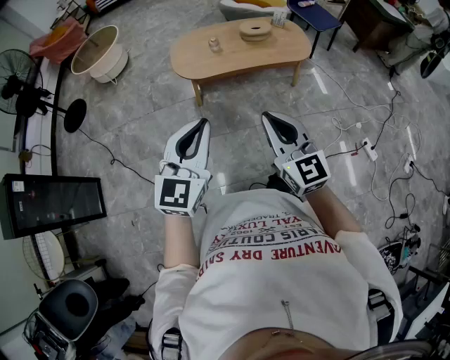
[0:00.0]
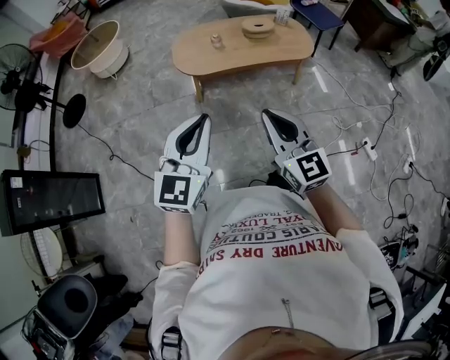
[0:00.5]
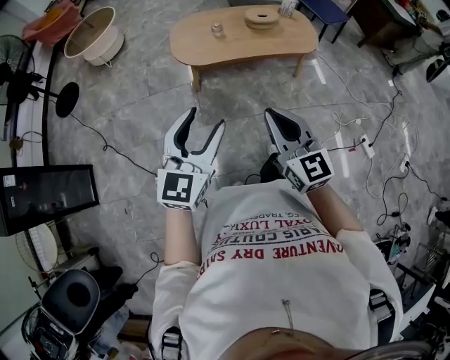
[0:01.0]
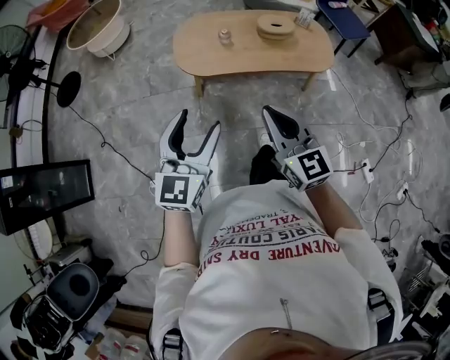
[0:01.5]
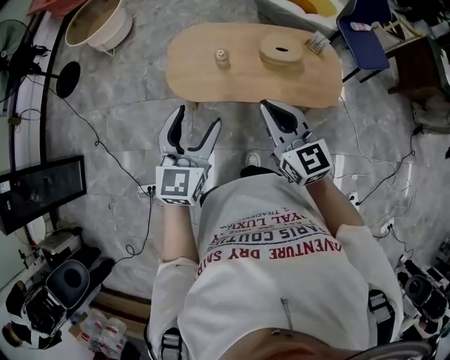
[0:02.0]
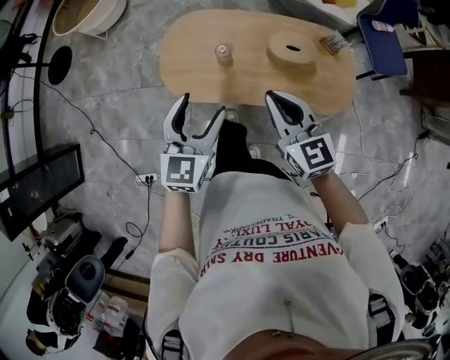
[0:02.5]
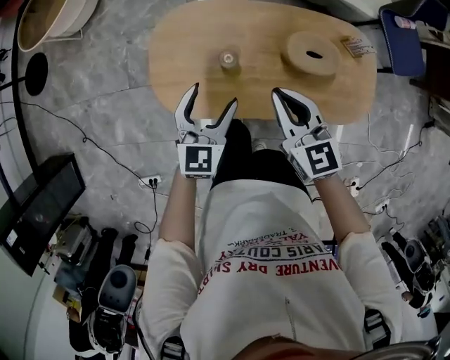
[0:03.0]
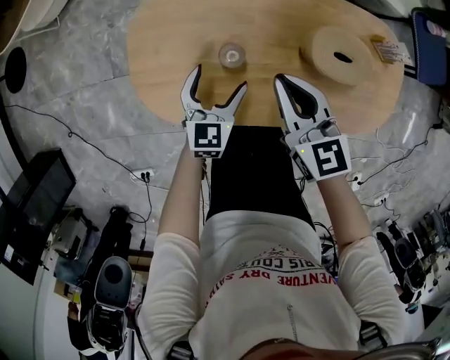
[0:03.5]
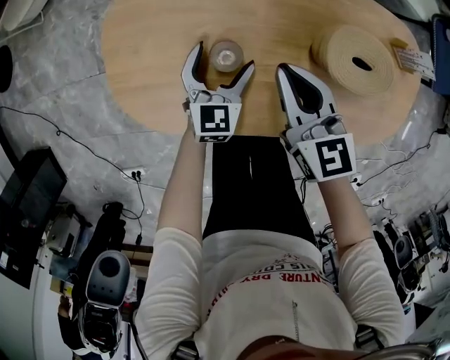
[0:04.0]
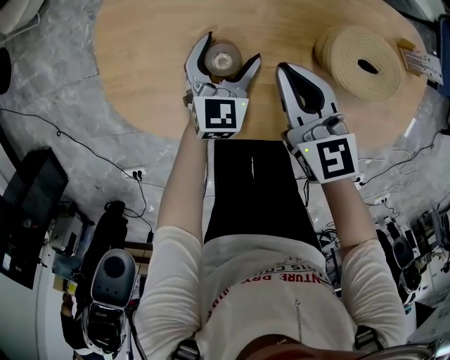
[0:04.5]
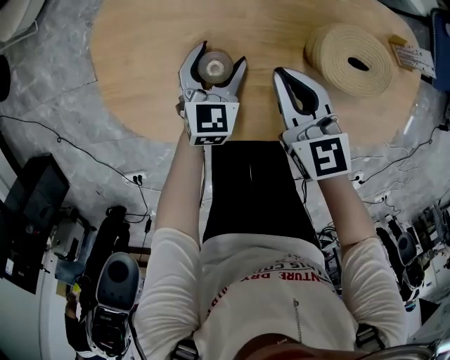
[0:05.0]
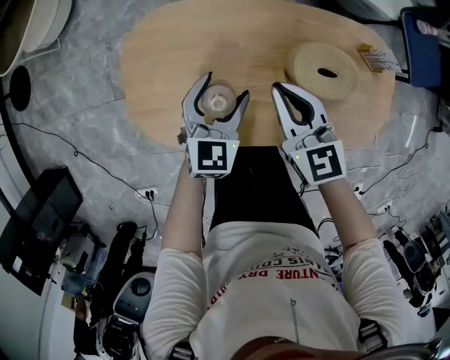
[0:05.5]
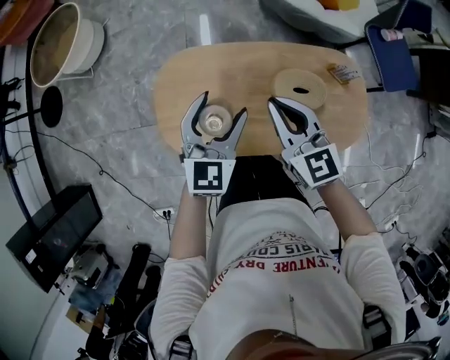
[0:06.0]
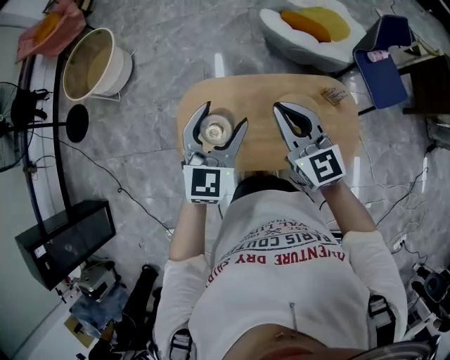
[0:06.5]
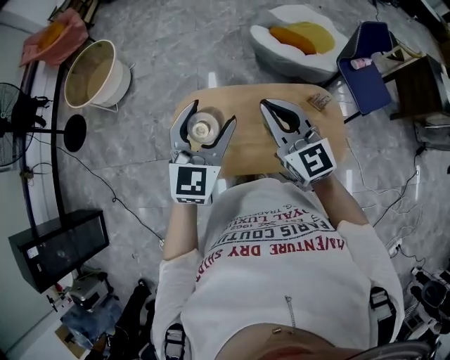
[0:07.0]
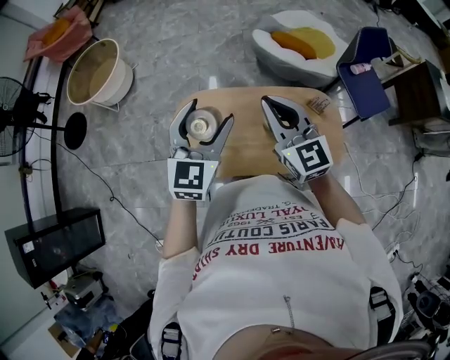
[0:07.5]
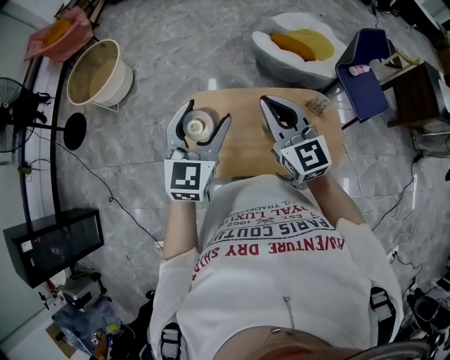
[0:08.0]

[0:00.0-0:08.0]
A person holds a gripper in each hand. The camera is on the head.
0:00.0 to 0:02.0: Both grippers are carried forward, some 40 cm. The left gripper changes its angle by roughly 20 degrees, and opens up. Meanwhile the right gripper turns by approximately 20 degrees.
0:02.0 to 0:04.0: Both grippers travel together downward and forward, some 60 cm. The right gripper rotates some 20 degrees.
0:04.0 to 0:06.0: The grippers both shift upward by roughly 30 cm.
0:06.0 to 0:08.0: Both grippers travel together upward, some 20 cm.

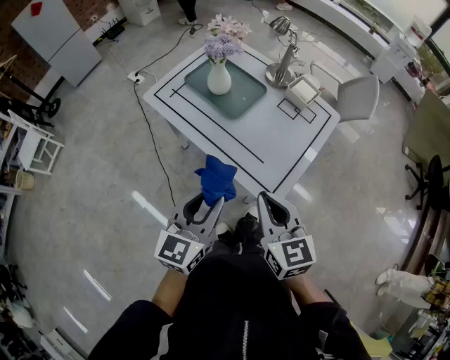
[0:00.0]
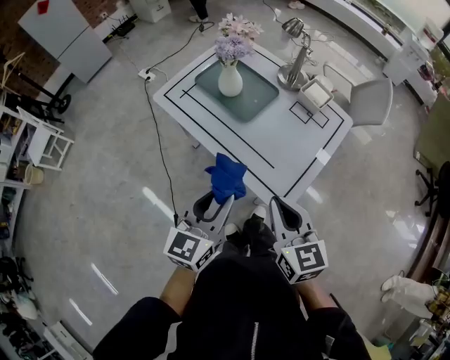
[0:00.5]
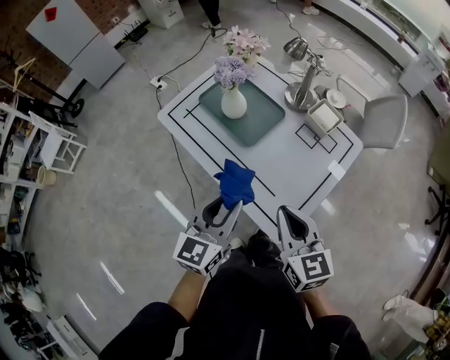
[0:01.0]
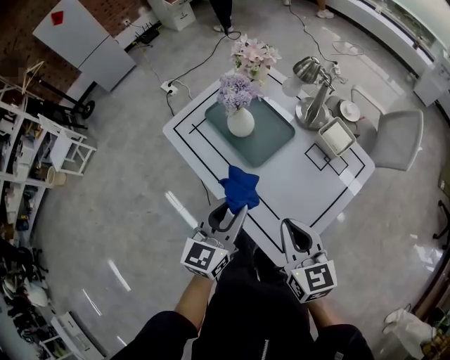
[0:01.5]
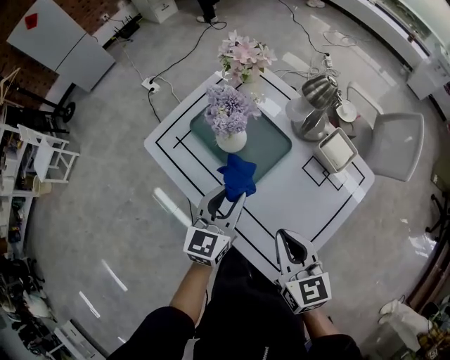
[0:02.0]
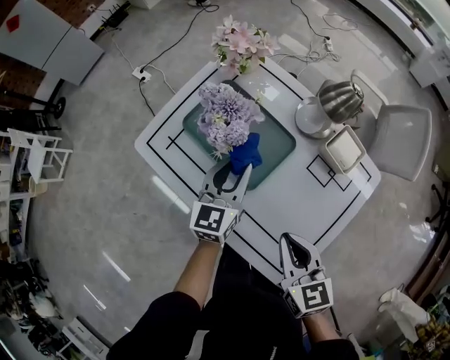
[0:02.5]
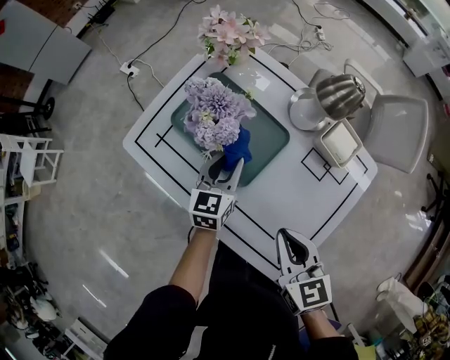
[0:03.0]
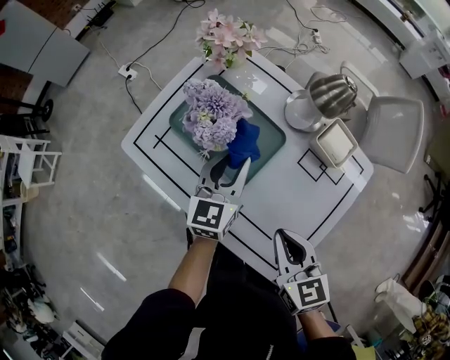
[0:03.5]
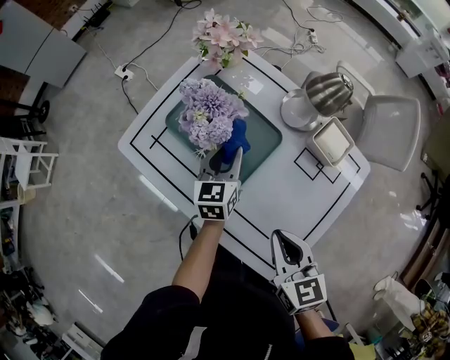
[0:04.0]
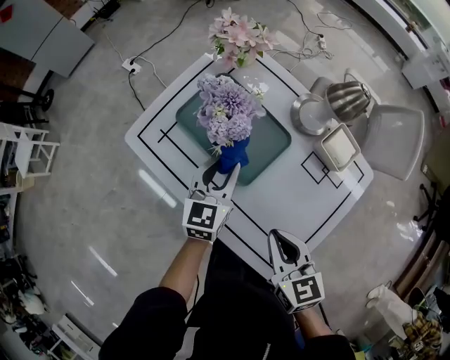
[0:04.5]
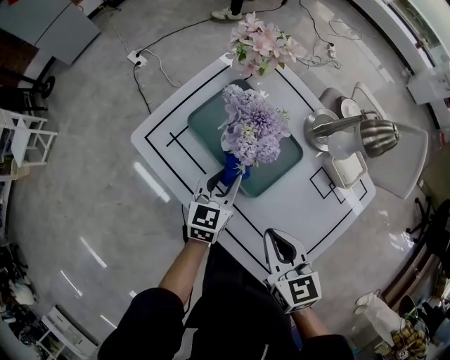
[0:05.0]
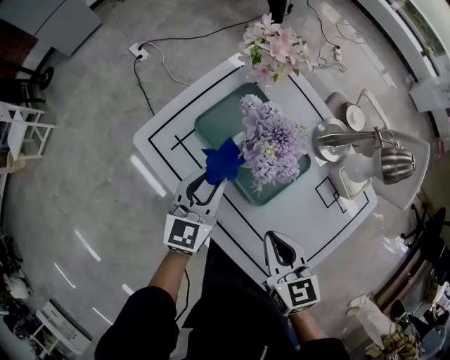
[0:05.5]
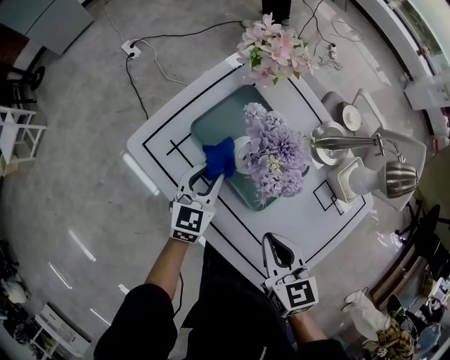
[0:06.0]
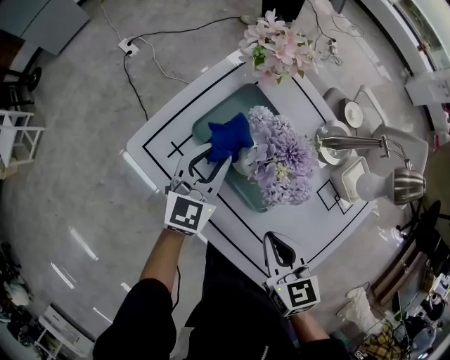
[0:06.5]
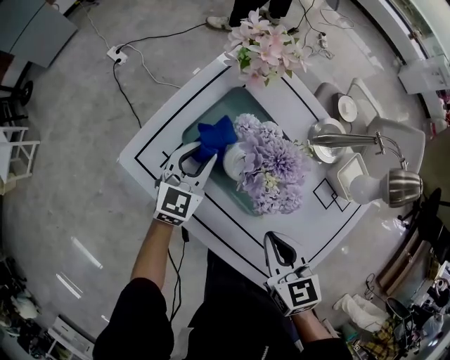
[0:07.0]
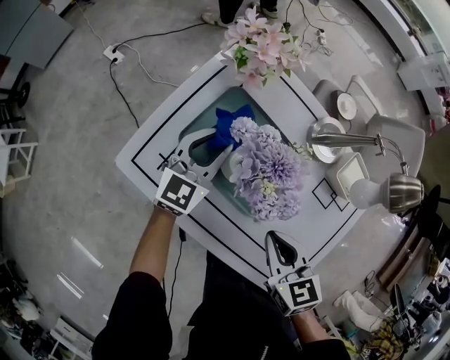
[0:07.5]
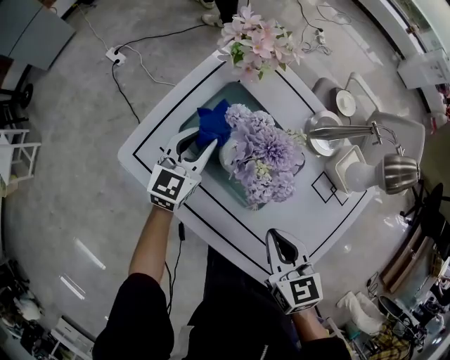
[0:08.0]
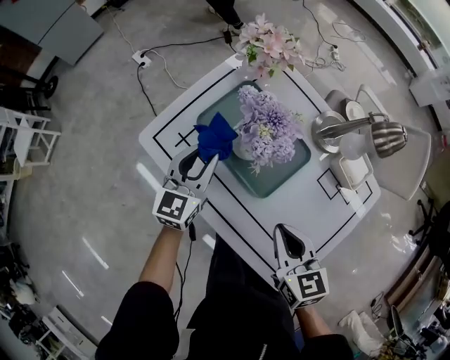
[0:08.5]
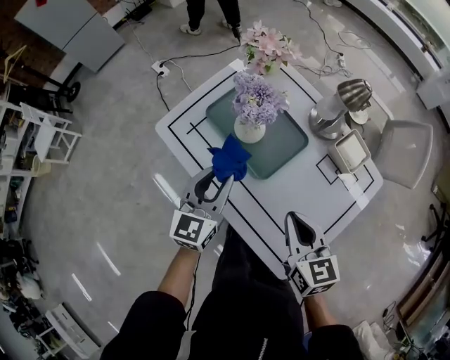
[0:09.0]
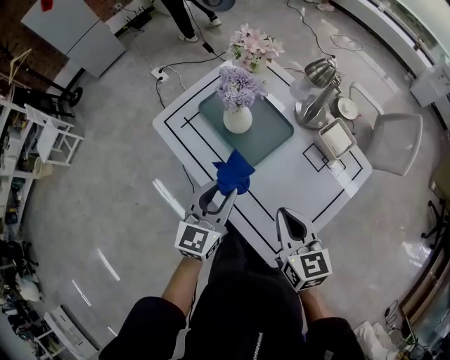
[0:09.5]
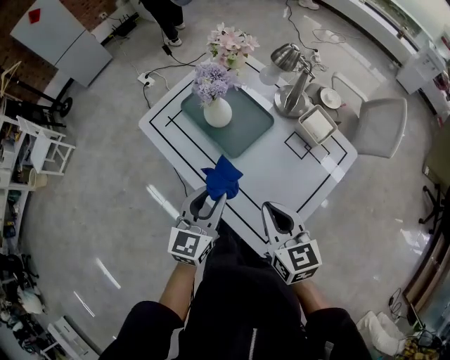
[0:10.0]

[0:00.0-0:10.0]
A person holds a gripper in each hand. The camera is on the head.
0:00.0 to 0:02.0: The two grippers go roughly 25 cm forward.
0:02.0 to 0:04.0: The left gripper moves forward and downward, some 15 cm.
0:04.0 to 0:06.0: The left gripper is displaced to the left by some 15 cm, while the right gripper moves to the left and forward, about 15 cm.
0:06.0 to 0:08.0: The left gripper goes some 10 cm forward.
0:08.0 to 0:10.0: The right gripper moves backward, to the right and upward, some 20 cm, while the left gripper travels backward and upward by about 35 cm.

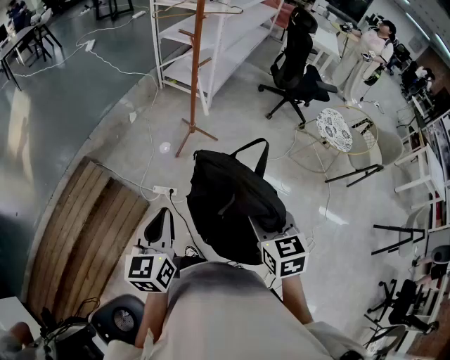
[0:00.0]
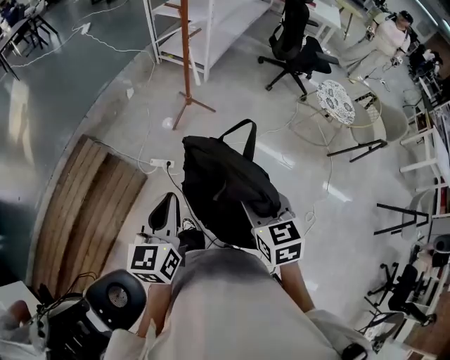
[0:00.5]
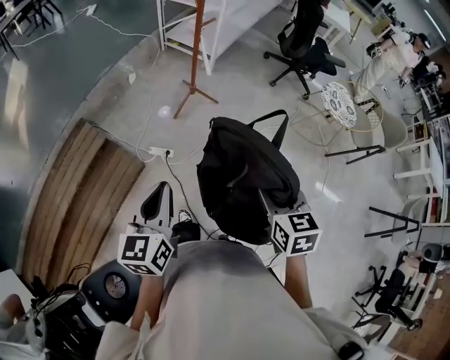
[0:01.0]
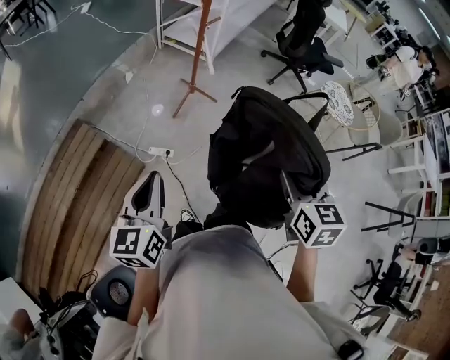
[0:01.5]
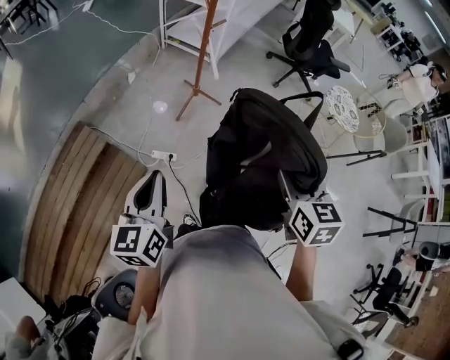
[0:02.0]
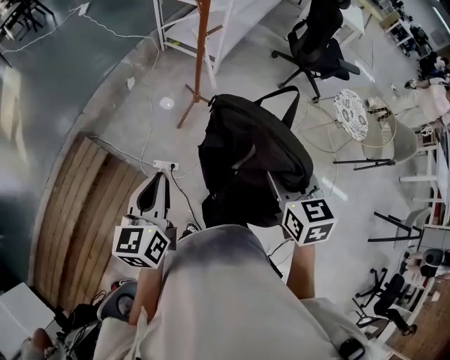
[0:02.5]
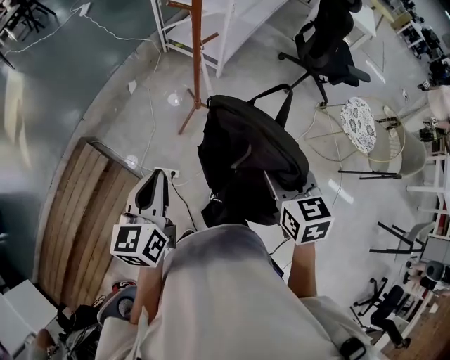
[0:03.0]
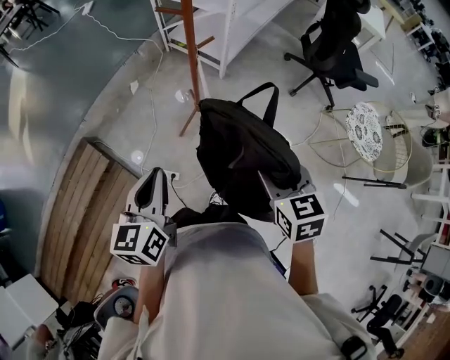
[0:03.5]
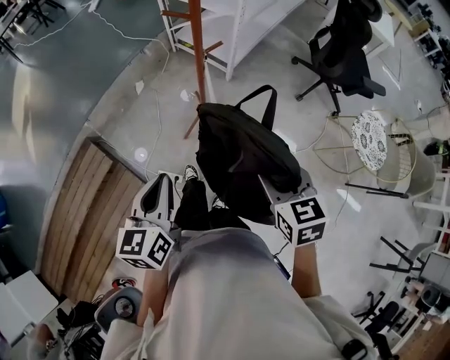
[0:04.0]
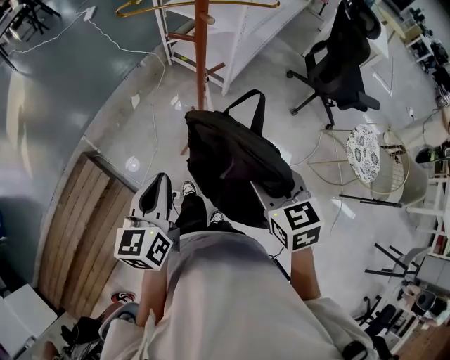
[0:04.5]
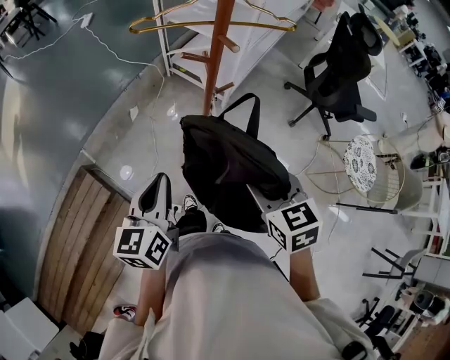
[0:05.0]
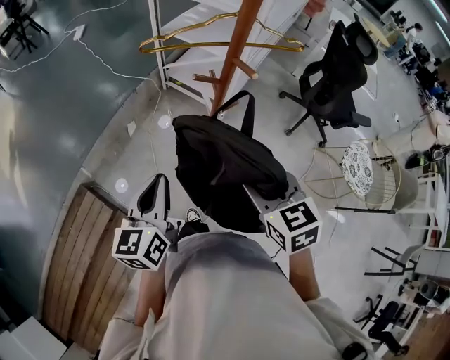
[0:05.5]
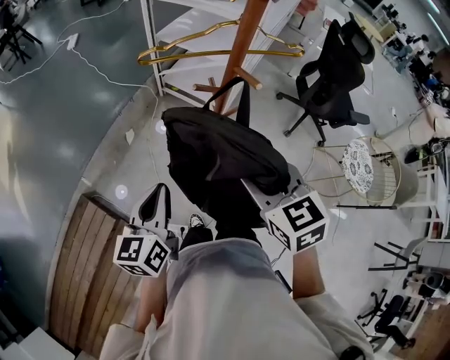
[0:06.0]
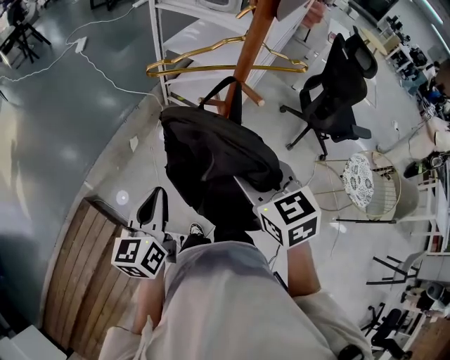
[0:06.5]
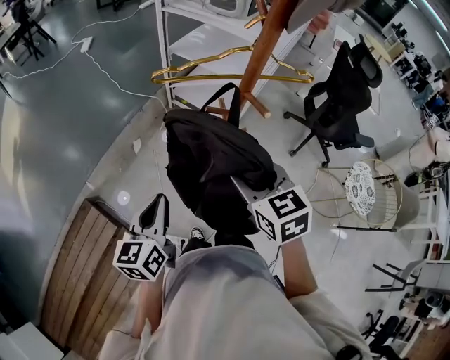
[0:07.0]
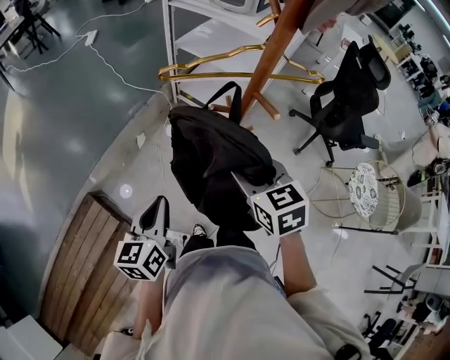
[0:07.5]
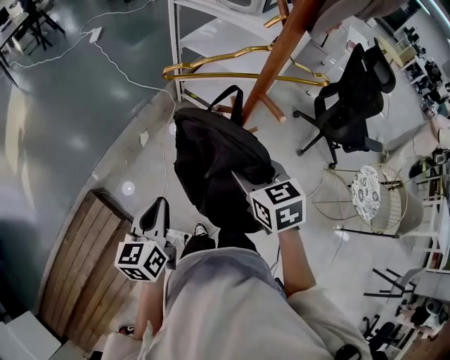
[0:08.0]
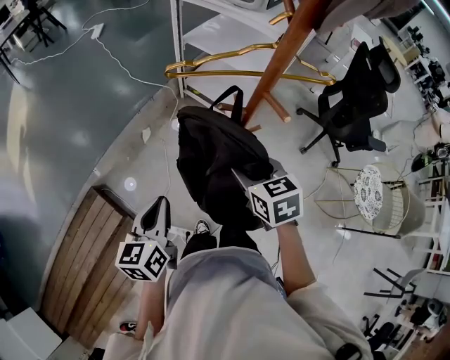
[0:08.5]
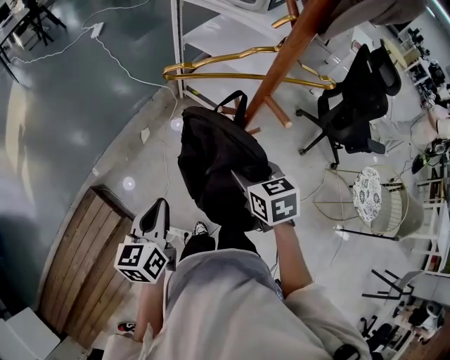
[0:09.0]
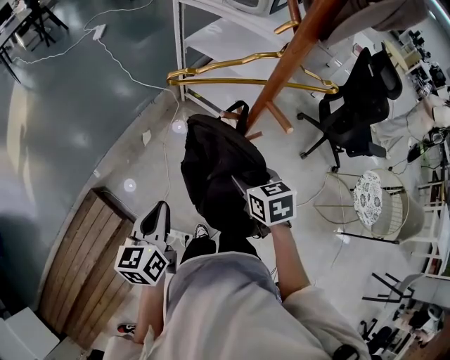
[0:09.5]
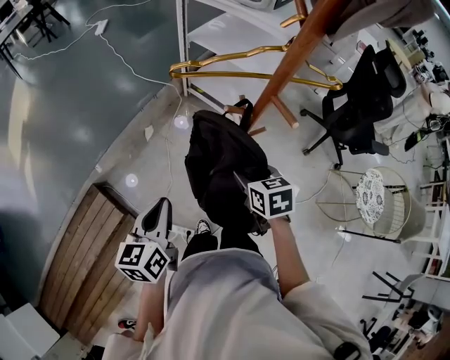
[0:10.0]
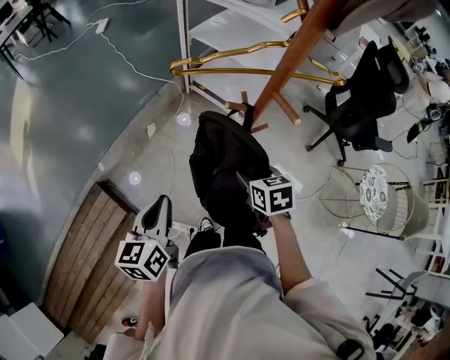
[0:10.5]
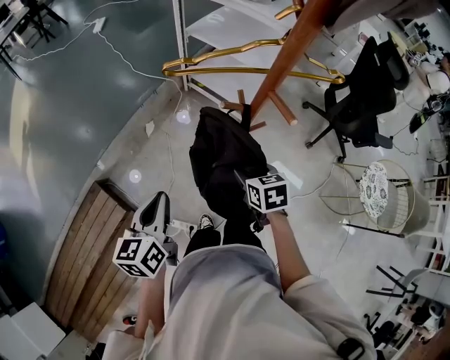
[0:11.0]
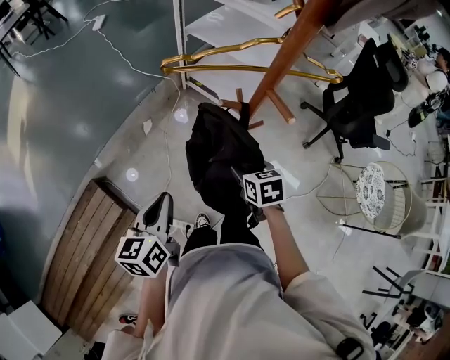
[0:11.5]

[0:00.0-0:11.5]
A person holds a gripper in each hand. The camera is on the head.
0:00.0 to 0:02.0: The left gripper moves to the left and forward, about 10 cm, while the right gripper shifts some 10 cm forward.
0:02.0 to 0:04.0: The right gripper travels forward by about 30 cm, and changes its angle by about 20 degrees; the left gripper is displaced forward and to the right by roughly 35 cm.
0:04.0 to 0:06.0: The left gripper moves forward and to the left, approximately 25 cm. The right gripper moves forward, to the left and upward, approximately 30 cm.
0:06.0 to 0:07.5: The right gripper moves forward, about 10 cm.
0:07.5 to 0:09.5: The right gripper shifts approximately 10 cm downward.
0:09.5 to 0:11.5: The right gripper goes roughly 10 cm downward.
